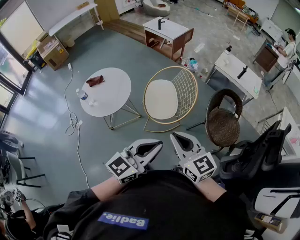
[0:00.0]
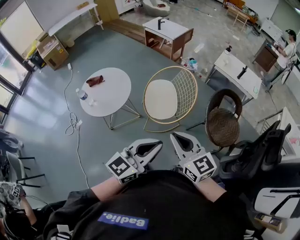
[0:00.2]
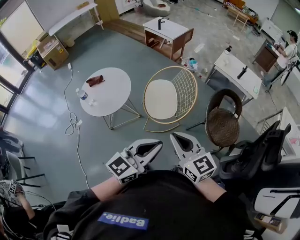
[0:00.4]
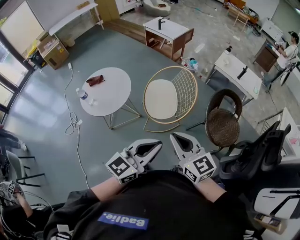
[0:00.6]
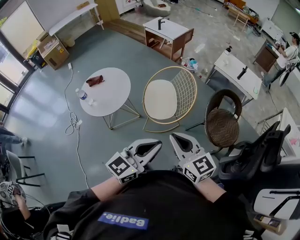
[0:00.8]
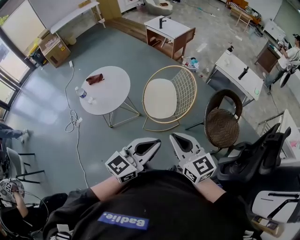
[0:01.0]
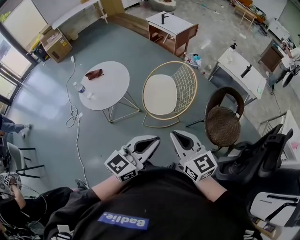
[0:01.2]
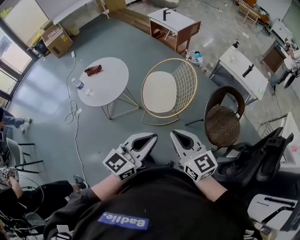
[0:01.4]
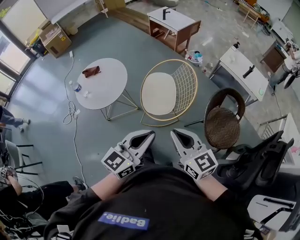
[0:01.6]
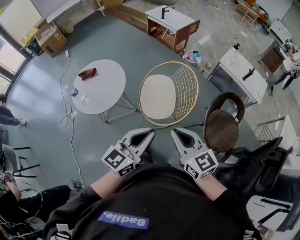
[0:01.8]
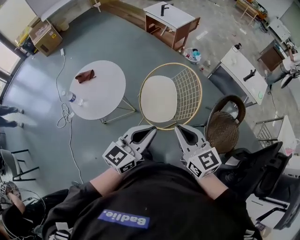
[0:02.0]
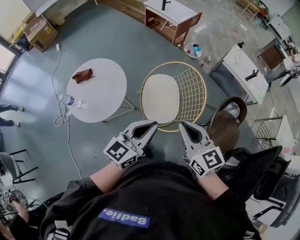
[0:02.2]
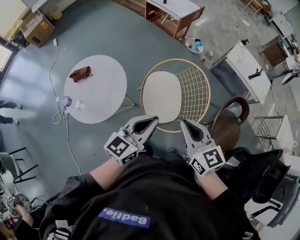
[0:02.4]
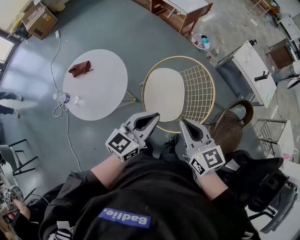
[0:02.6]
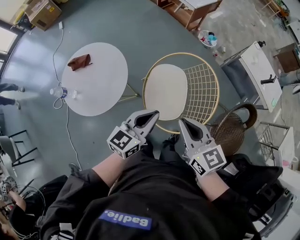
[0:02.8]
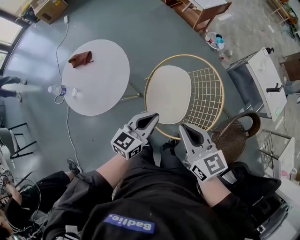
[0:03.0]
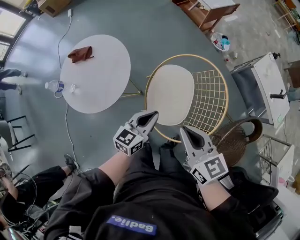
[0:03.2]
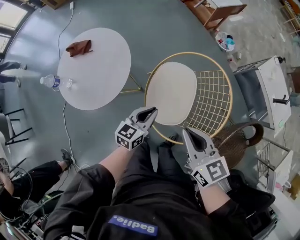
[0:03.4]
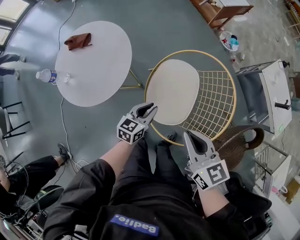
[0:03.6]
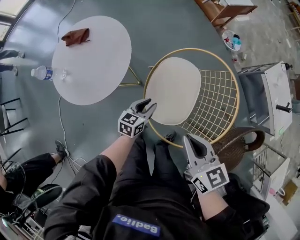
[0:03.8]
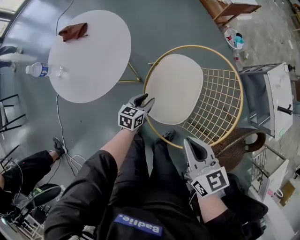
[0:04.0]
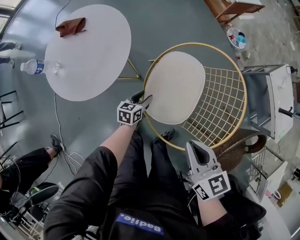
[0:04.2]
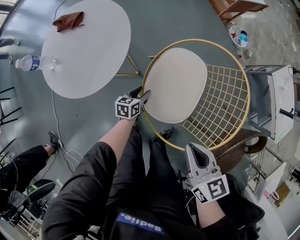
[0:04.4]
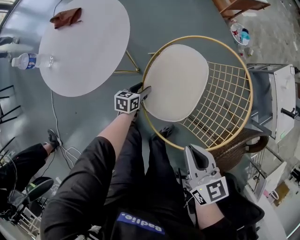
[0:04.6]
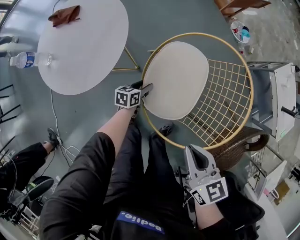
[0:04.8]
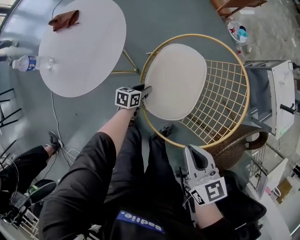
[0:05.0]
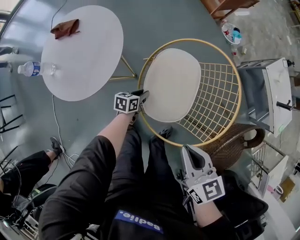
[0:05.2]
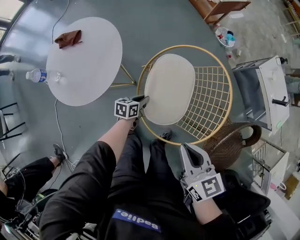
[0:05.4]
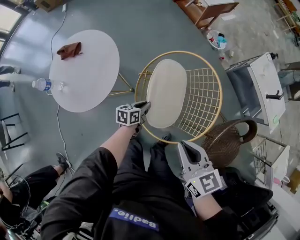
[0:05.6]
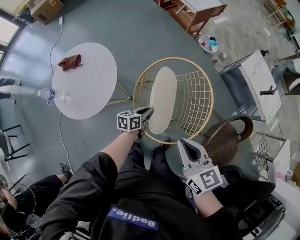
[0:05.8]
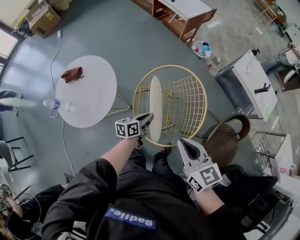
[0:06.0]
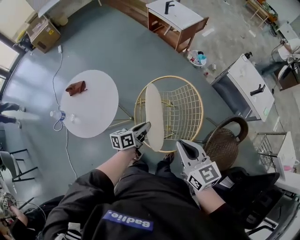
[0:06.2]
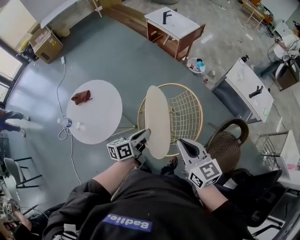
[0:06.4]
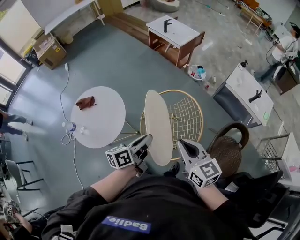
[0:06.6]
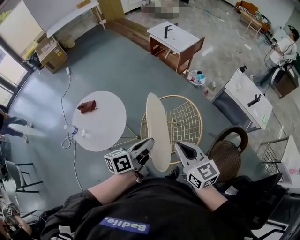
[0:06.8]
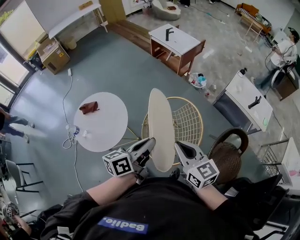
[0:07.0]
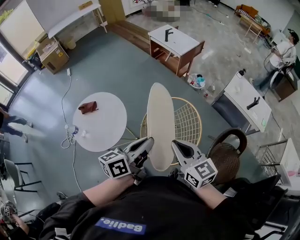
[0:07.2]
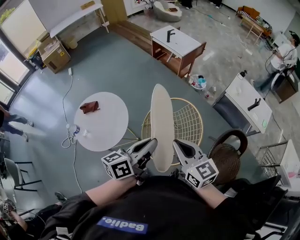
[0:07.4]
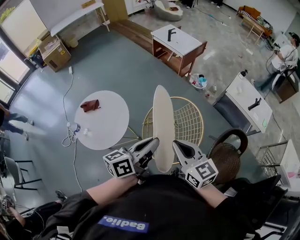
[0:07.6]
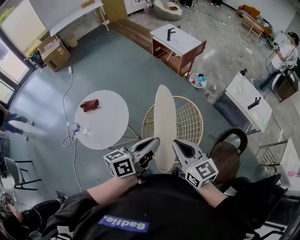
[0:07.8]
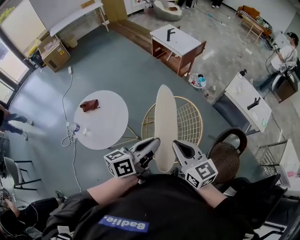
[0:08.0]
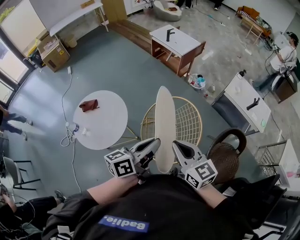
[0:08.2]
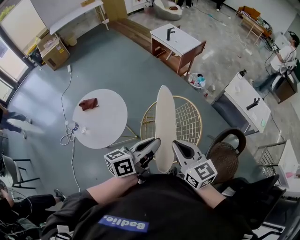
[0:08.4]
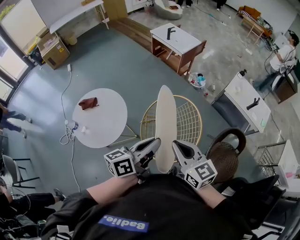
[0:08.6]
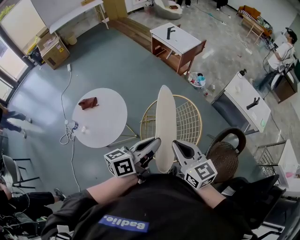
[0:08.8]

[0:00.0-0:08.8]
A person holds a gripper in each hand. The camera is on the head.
0:00.0 to 0:01.4: The right gripper is displaced to the right by roughly 5 cm. Meanwhile the left gripper shifts by roughly 5 cm.
0:01.4 to 0:03.0: The right gripper goes approximately 25 cm forward; the left gripper heads forward and downward, covering about 35 cm.
0:03.0 to 0:04.4: The right gripper shifts some 15 cm downward. Meanwhile the left gripper travels downward by roughly 35 cm, rotates approximately 40 degrees, and opens.
0:04.4 to 0:05.8: The left gripper travels upward and to the right by some 20 cm, and closes up; the right gripper moves upward, some 15 cm.
0:05.8 to 0:07.4: The left gripper travels upward by about 40 cm, and rotates about 30 degrees. Meanwhile the right gripper moves upward, roughly 10 cm.
0:07.4 to 0:08.8: The grippers make only small movements.

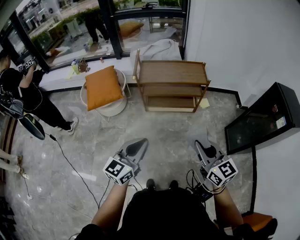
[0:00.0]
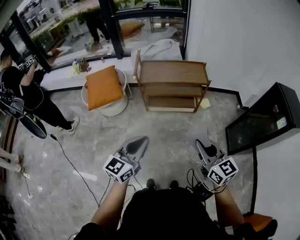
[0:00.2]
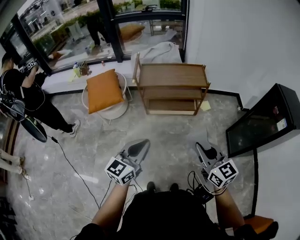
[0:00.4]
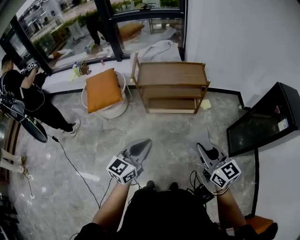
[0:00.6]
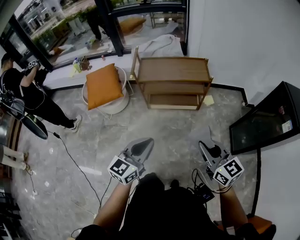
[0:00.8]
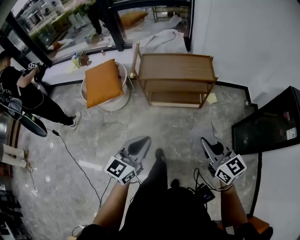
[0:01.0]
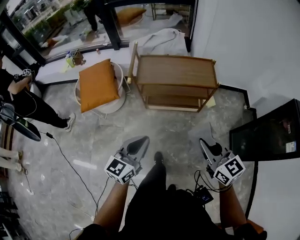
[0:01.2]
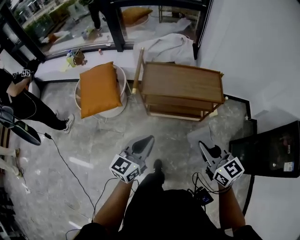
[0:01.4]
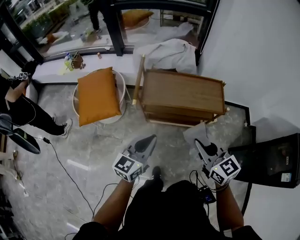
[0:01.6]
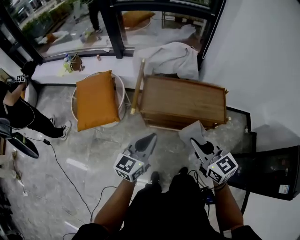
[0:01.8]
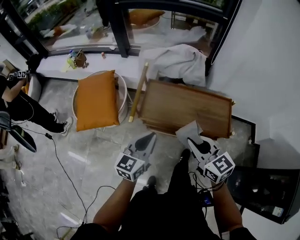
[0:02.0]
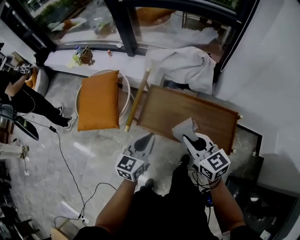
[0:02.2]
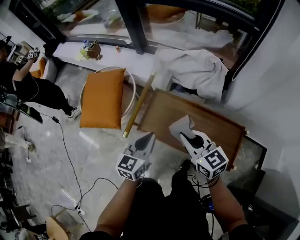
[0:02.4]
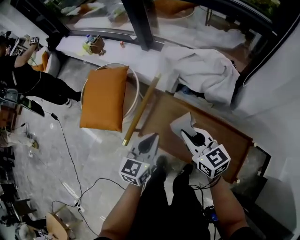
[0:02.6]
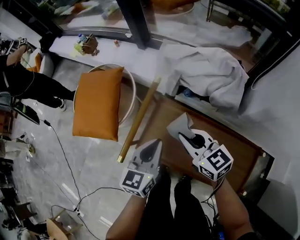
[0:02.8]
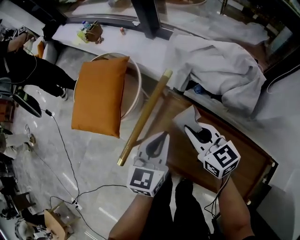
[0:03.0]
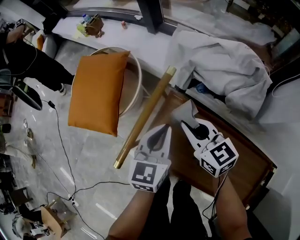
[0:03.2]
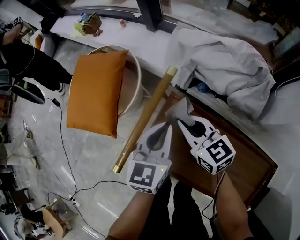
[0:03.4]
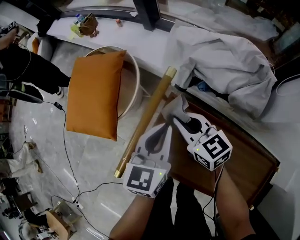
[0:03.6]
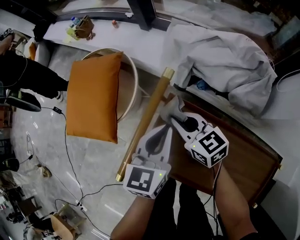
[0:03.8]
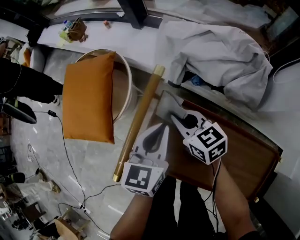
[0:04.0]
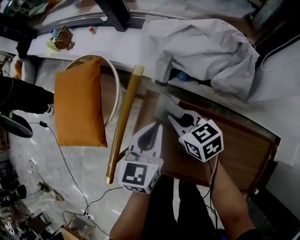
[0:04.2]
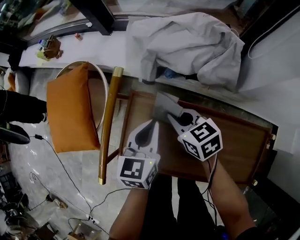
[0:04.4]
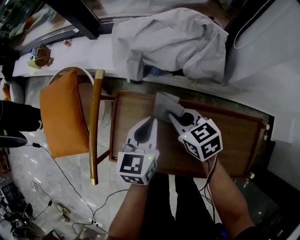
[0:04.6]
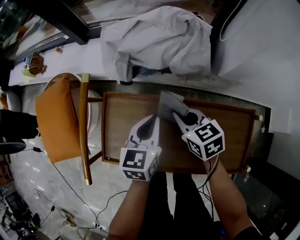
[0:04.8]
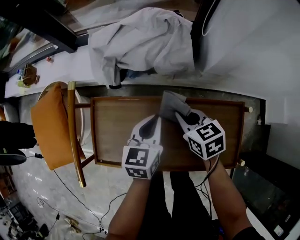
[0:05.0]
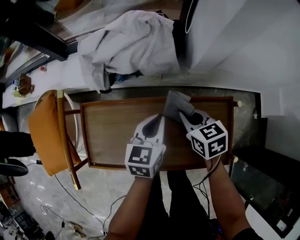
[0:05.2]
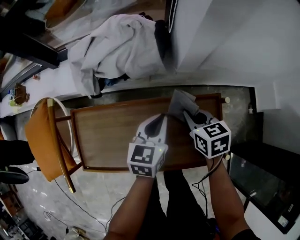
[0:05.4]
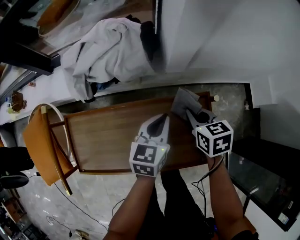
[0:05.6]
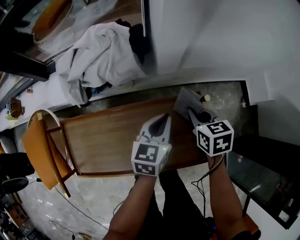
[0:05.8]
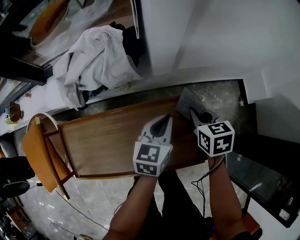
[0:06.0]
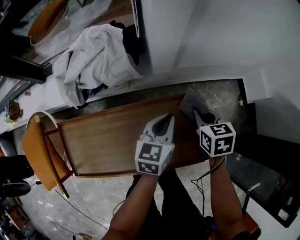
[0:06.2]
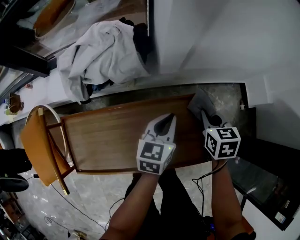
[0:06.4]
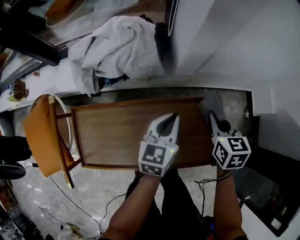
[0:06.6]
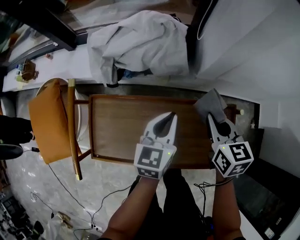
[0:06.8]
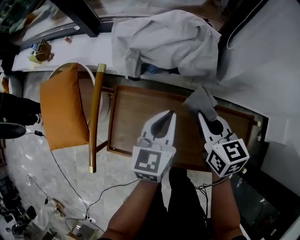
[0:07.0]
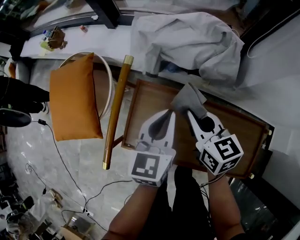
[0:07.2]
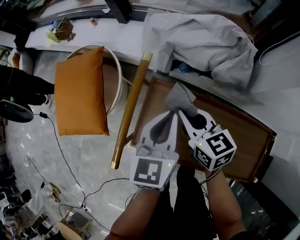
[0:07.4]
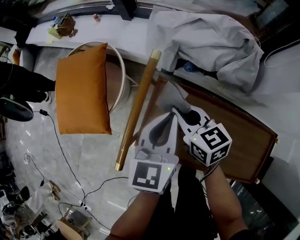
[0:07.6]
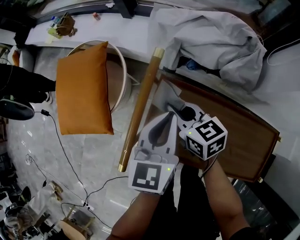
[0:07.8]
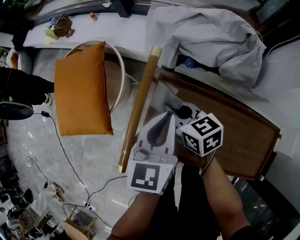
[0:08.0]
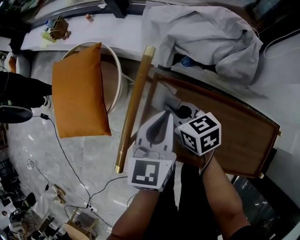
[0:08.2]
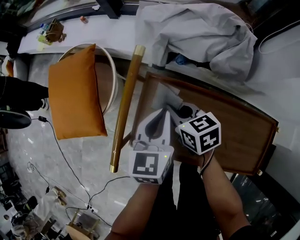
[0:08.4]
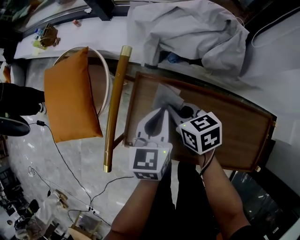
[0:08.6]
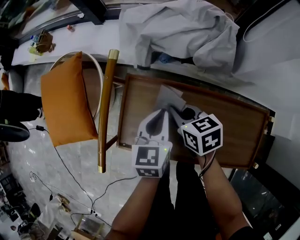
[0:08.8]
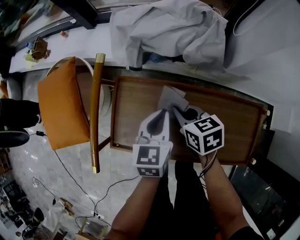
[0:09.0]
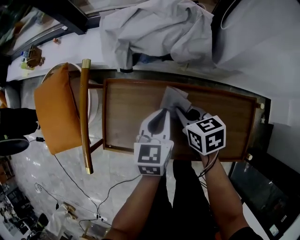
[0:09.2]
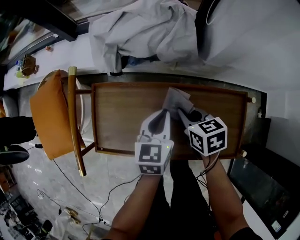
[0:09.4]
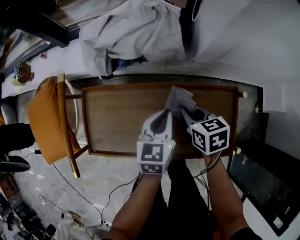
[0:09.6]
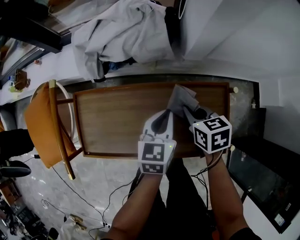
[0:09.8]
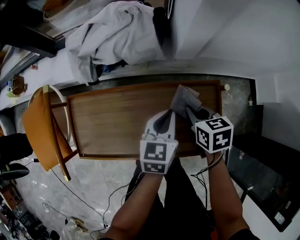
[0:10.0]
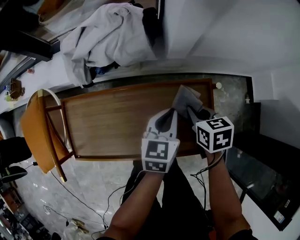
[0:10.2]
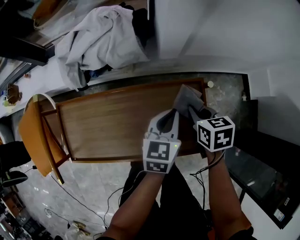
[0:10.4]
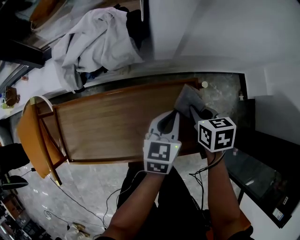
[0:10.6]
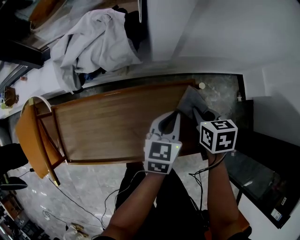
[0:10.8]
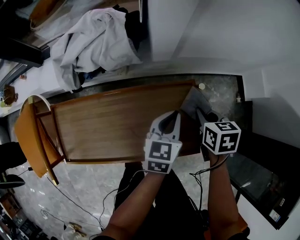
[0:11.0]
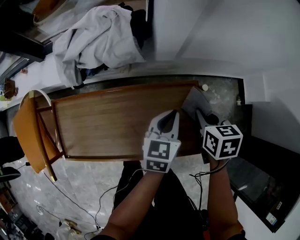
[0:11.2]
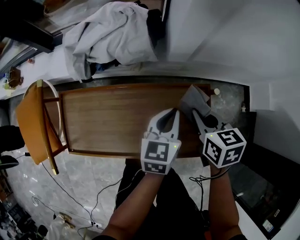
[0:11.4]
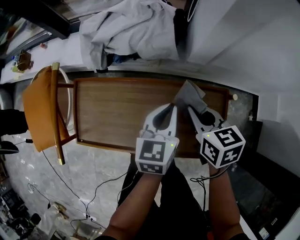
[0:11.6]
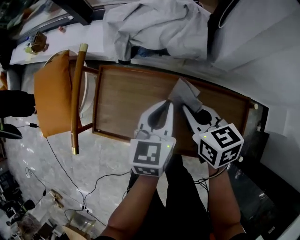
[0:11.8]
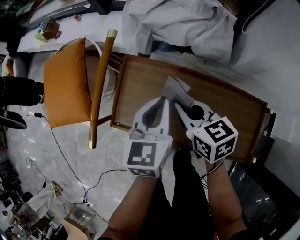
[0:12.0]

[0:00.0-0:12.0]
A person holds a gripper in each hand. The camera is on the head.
0:00.0 to 0:01.6: Both grippers travel together forward, approximately 35 cm.
0:01.6 to 0:03.0: The left gripper shifts by roughly 40 cm, and changes its angle by roughly 40 degrees. The right gripper moves roughly 50 cm, and swivels some 30 degrees.
0:03.0 to 0:04.4: The right gripper heads downward and to the right, covering roughly 10 cm, and rotates roughly 20 degrees, while the left gripper goes approximately 10 cm to the right and downward.
0:04.4 to 0:06.0: The left gripper ends up some 40 cm from where it was, and changes its angle by approximately 30 degrees. Meanwhile the right gripper moves roughly 50 cm, and turns by about 50 degrees.
0:06.0 to 0:07.6: Both grippers are carried approximately 50 cm. The left gripper changes its angle by some 40 degrees. Meanwhile the right gripper changes its angle by approximately 50 degrees.
0:07.6 to 0:09.0: The right gripper travels to the right, backward and downward by roughly 15 cm, and swivels roughly 20 degrees; the left gripper goes roughly 15 cm to the right and downward.
0:09.0 to 0:10.4: The right gripper changes place by roughly 35 cm, and rotates some 30 degrees. The left gripper changes place by roughly 30 cm, and changes its angle by approximately 20 degrees.
0:10.4 to 0:12.0: The right gripper shifts by about 35 cm, and rotates some 40 degrees; the left gripper changes place by approximately 35 cm, and turns by roughly 30 degrees.

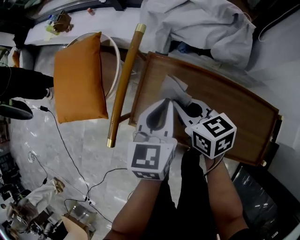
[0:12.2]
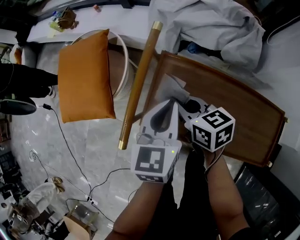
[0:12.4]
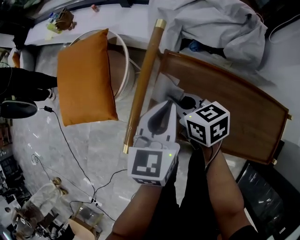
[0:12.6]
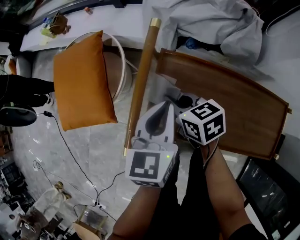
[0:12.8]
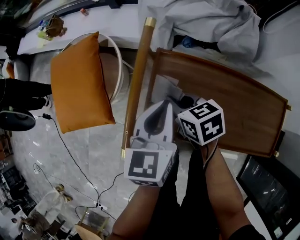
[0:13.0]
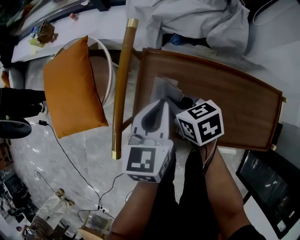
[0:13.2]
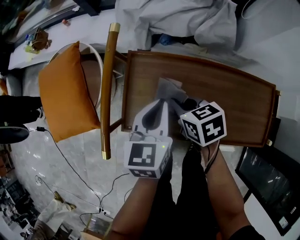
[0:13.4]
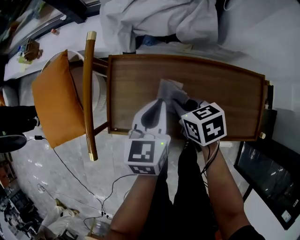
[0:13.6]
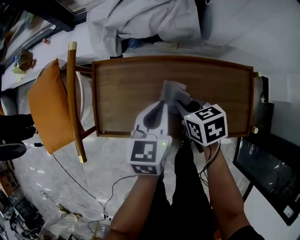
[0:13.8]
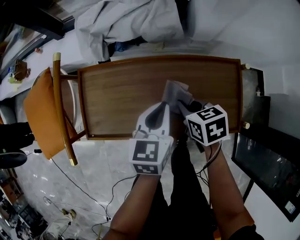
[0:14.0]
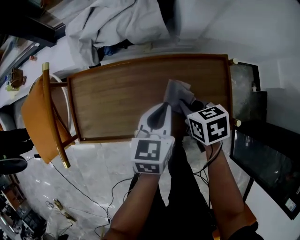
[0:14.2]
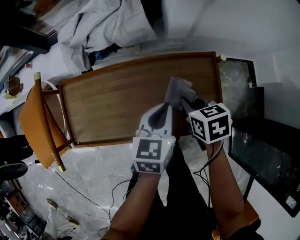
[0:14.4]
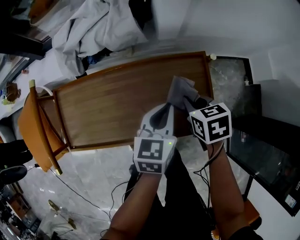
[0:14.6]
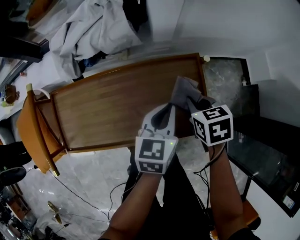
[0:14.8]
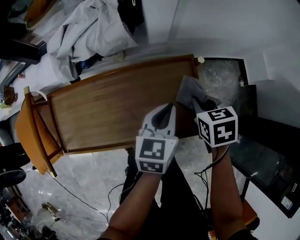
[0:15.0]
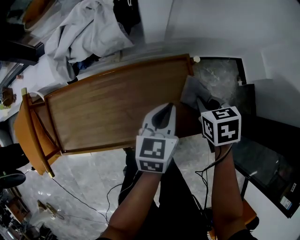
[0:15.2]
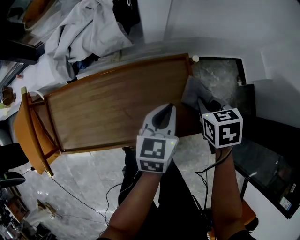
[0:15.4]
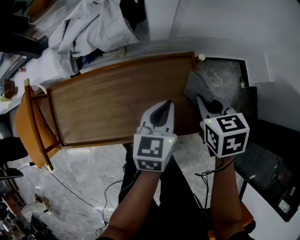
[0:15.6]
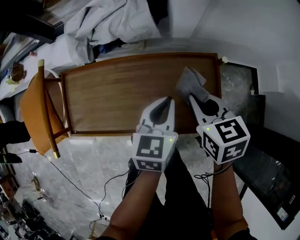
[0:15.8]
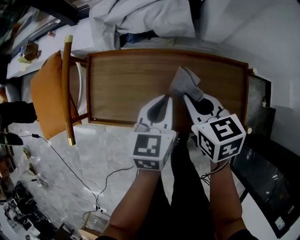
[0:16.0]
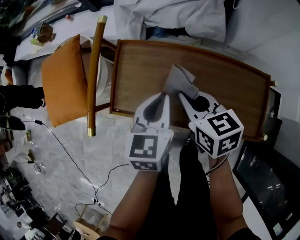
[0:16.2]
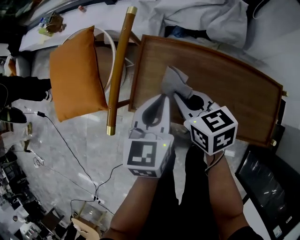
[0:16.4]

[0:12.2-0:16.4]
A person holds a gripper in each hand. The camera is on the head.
0:12.2 to 0:13.6: The right gripper goes about 10 cm to the right, downward and backward, and swivels about 20 degrees. The left gripper heads to the right and downward, covering approximately 10 cm.
0:13.6 to 0:15.0: The left gripper ends up some 35 cm from where it was, and rotates some 20 degrees. The right gripper shifts by some 35 cm, and swivels roughly 30 degrees.
0:15.0 to 0:16.4: The left gripper moves approximately 40 cm, and rotates approximately 30 degrees, while the right gripper shifts by some 50 cm, and changes its angle by roughly 40 degrees.
